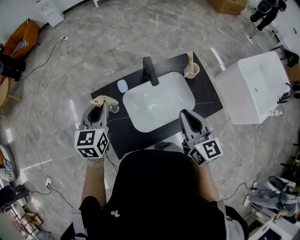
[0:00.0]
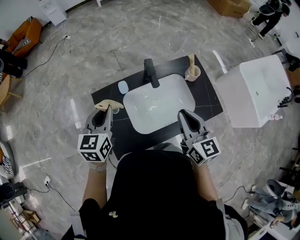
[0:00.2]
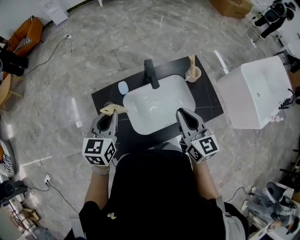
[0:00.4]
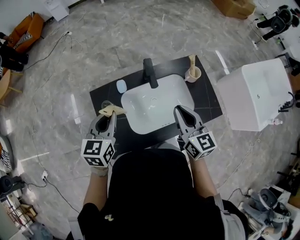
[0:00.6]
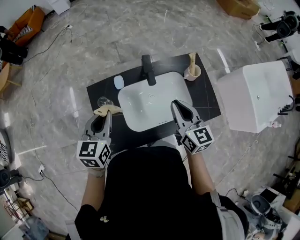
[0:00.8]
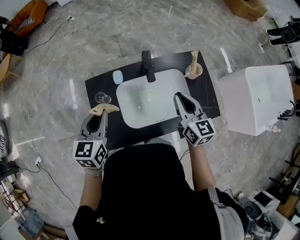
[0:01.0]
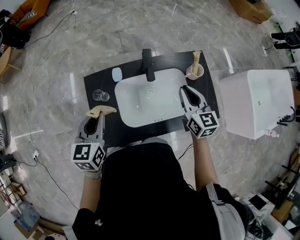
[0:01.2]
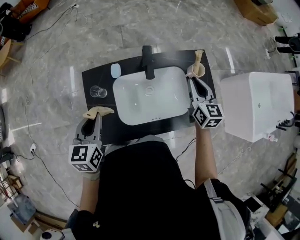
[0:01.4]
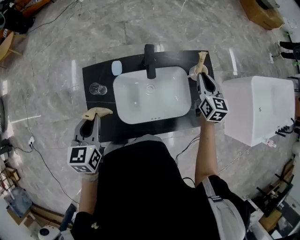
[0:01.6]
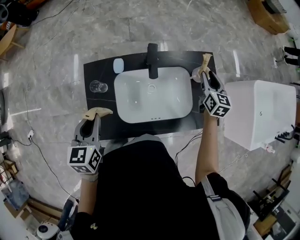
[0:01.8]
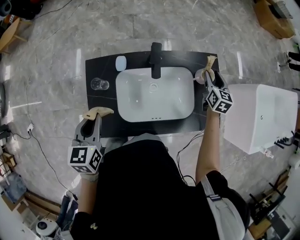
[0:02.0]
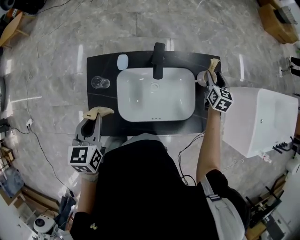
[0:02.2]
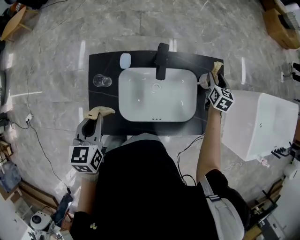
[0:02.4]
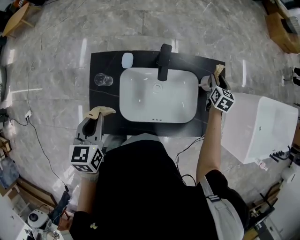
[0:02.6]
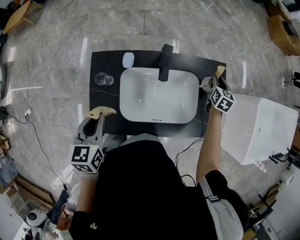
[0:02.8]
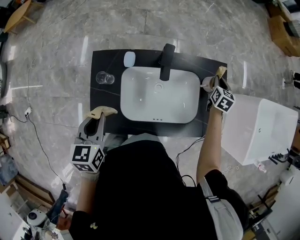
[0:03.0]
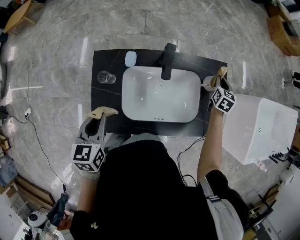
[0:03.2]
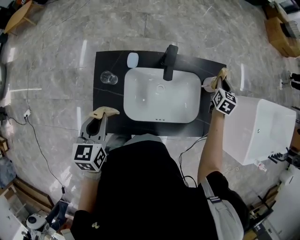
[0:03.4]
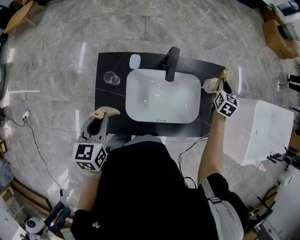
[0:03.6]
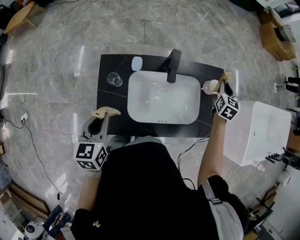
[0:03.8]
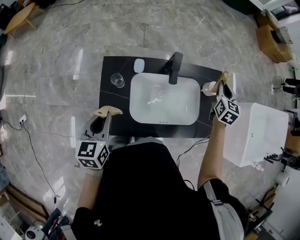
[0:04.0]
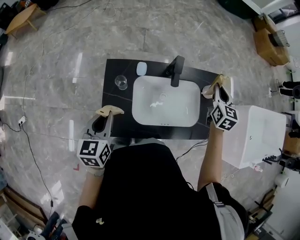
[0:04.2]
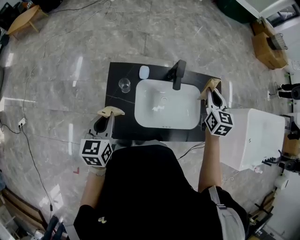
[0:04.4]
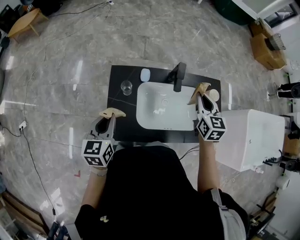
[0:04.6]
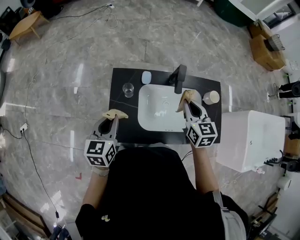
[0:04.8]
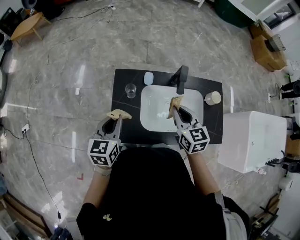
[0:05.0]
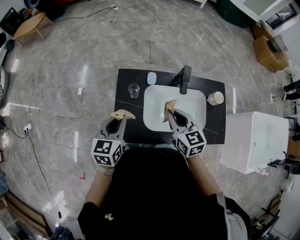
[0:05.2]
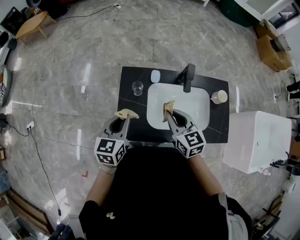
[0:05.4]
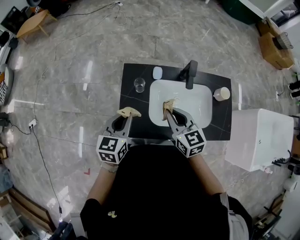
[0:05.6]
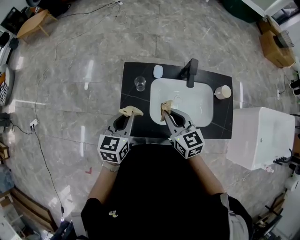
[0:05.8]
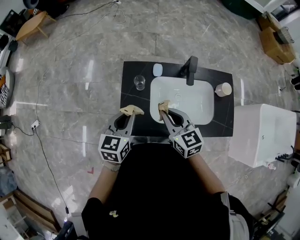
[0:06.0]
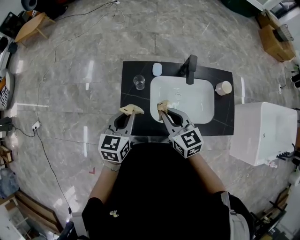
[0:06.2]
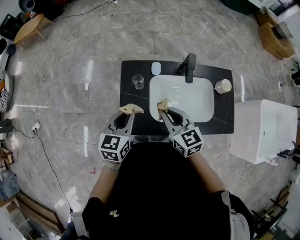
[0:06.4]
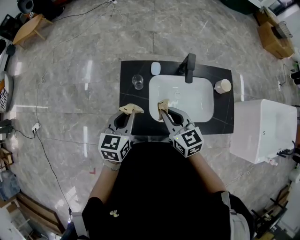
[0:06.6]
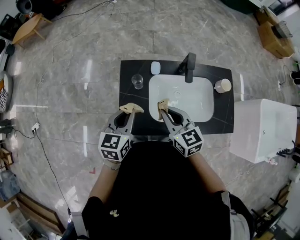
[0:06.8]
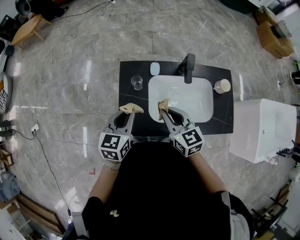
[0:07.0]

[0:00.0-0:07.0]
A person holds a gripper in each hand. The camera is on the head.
0:00.0 to 0:01.4: The left gripper shifts approximately 10 cm backward and downward. Meanwhile the right gripper moves forward, to the right and downward, approximately 25 cm.
0:01.4 to 0:02.8: The right gripper shifts approximately 20 cm downward, forward and to the right, and rotates approximately 20 degrees.
0:02.8 to 0:04.2: The left gripper is displaced to the left by about 5 cm; the right gripper goes approximately 25 cm upward, to the left and backward.
0:04.2 to 0:05.6: The right gripper goes about 35 cm to the left and backward, and changes its angle by approximately 30 degrees.
0:05.6 to 0:07.0: The grippers stay close to where they were, moving slightly.

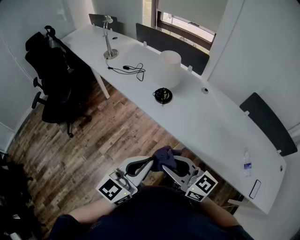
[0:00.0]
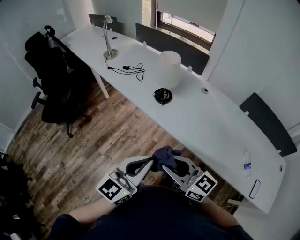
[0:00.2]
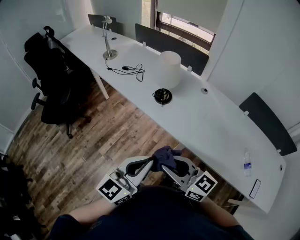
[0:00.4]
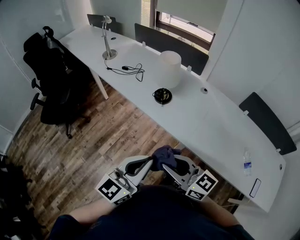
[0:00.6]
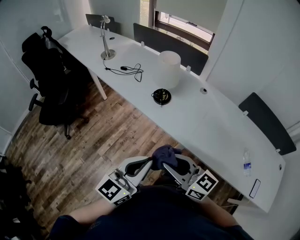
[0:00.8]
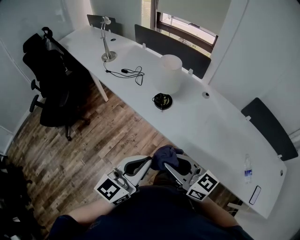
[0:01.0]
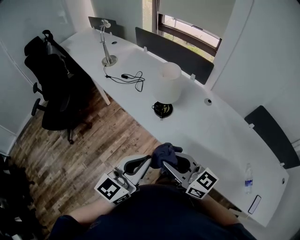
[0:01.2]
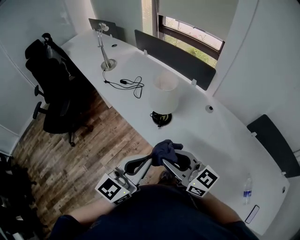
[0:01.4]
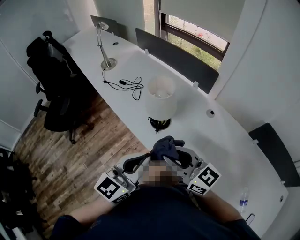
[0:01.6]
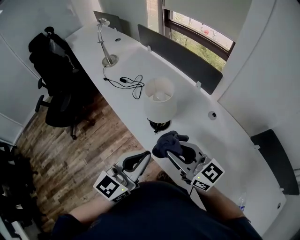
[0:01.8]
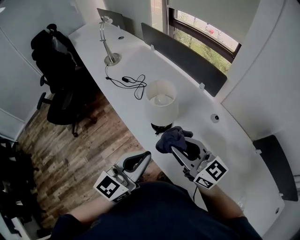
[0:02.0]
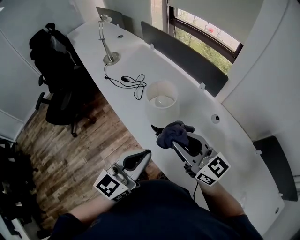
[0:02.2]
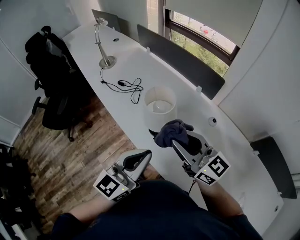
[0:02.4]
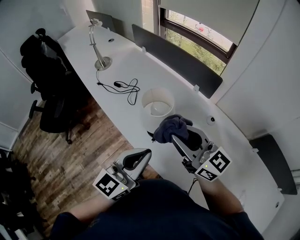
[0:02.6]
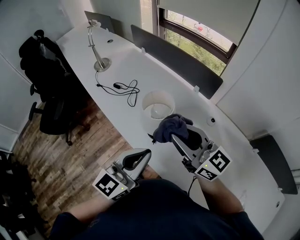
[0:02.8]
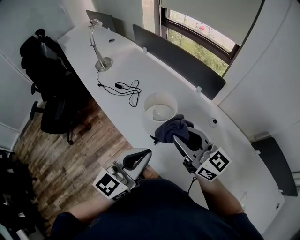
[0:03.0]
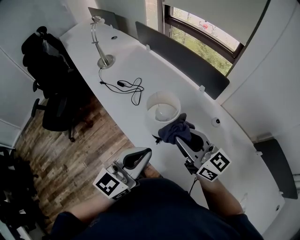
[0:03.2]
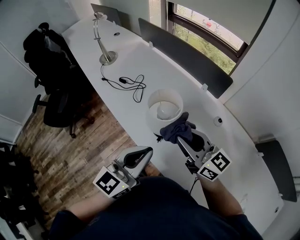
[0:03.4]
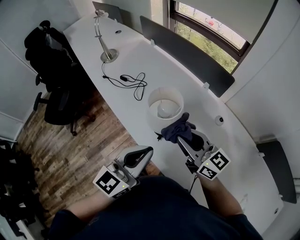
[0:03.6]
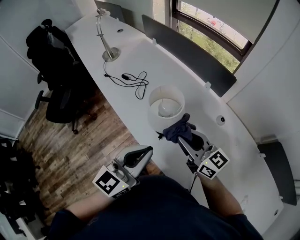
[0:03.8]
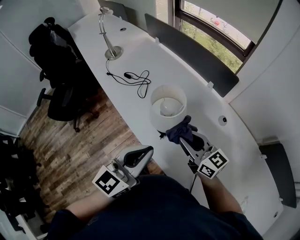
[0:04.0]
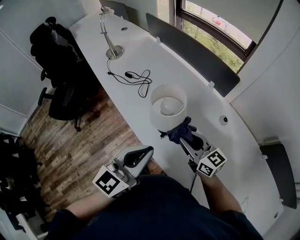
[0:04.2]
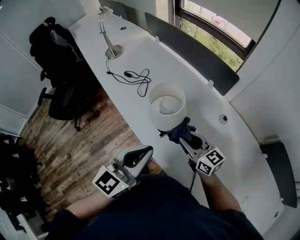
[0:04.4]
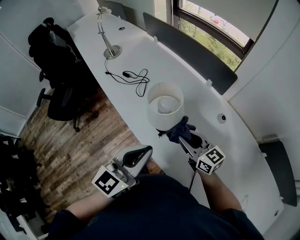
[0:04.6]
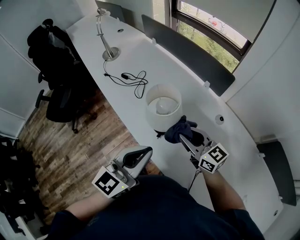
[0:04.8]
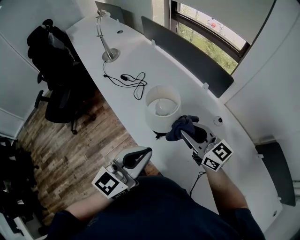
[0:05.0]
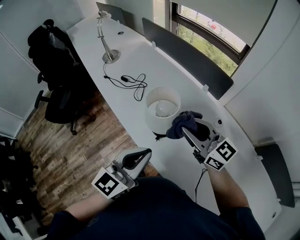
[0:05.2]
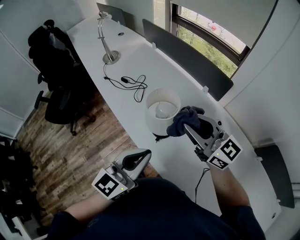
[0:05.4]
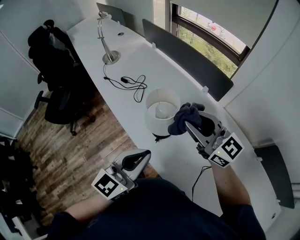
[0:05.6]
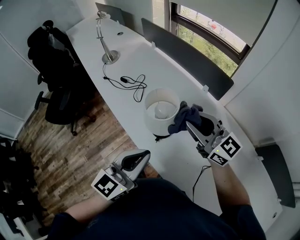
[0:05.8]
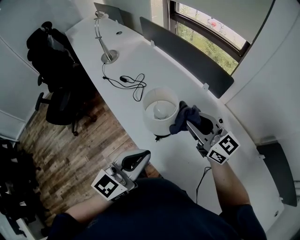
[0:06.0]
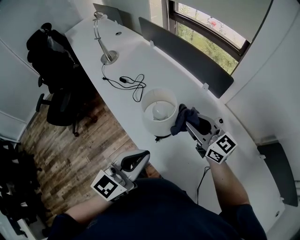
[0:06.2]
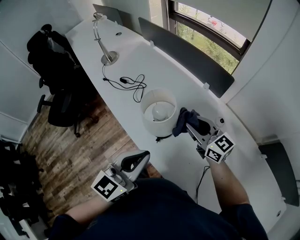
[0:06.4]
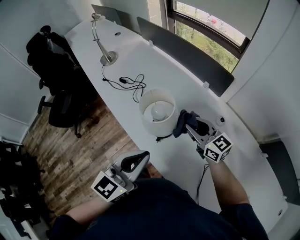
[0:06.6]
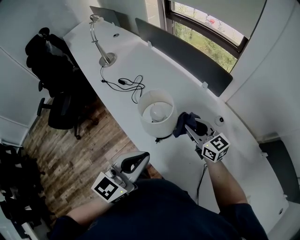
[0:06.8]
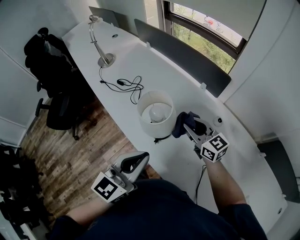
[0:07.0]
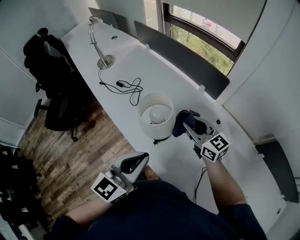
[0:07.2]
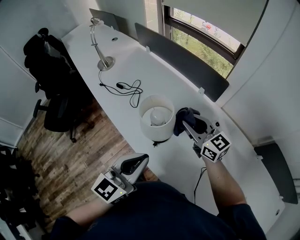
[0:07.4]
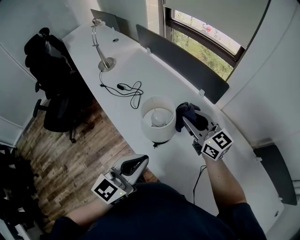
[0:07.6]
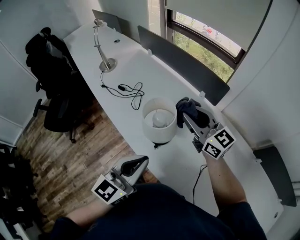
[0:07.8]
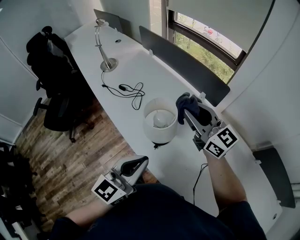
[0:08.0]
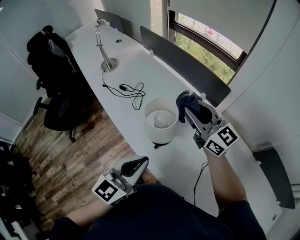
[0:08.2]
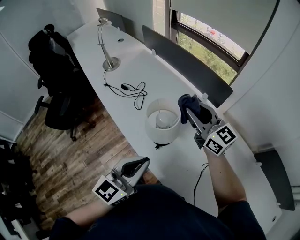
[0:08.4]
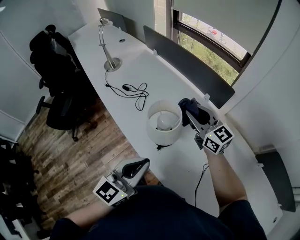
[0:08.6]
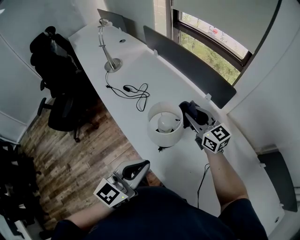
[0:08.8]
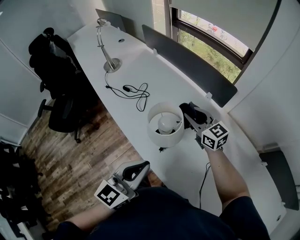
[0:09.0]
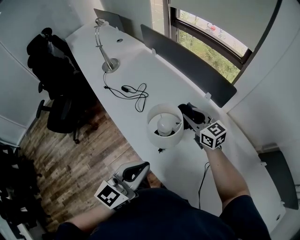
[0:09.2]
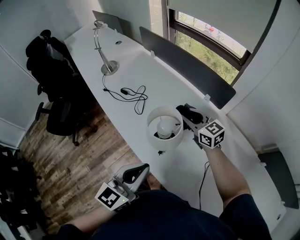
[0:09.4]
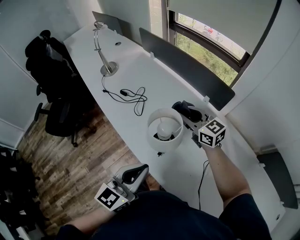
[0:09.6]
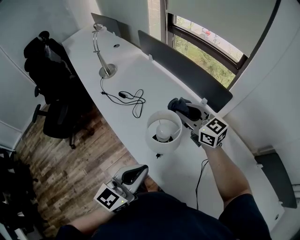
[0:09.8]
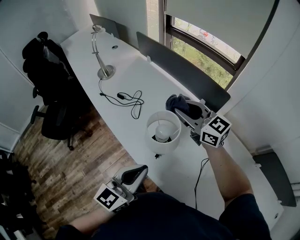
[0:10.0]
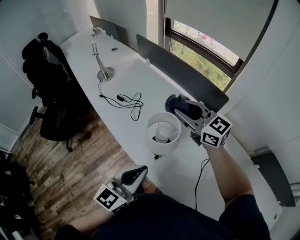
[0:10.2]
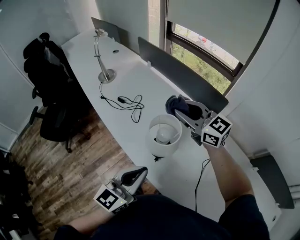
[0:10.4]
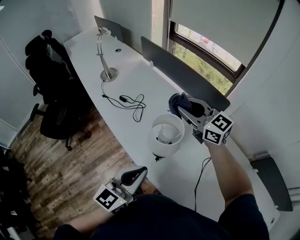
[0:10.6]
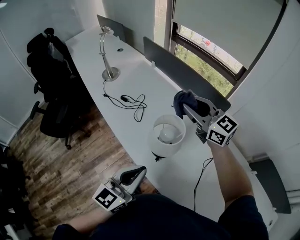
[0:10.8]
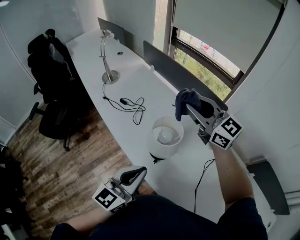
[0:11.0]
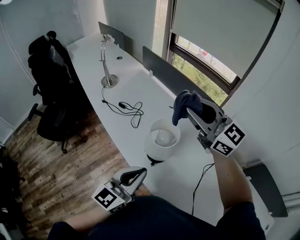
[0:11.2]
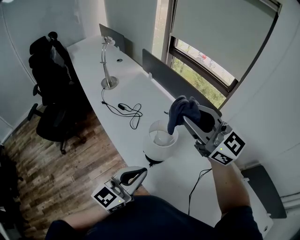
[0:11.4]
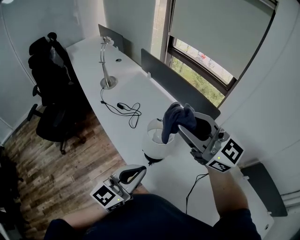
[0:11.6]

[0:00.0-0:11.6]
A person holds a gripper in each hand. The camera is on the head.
0:00.0 to 0:01.4: Both grippers travel together forward, about 20 cm.
0:01.4 to 0:02.8: The grippers both shift forward by about 15 cm.
0:02.8 to 0:04.4: The right gripper moves downward, roughly 15 cm.
0:04.4 to 0:05.8: The right gripper is displaced upward by some 15 cm.
0:05.8 to 0:07.2: The right gripper goes about 10 cm downward.
0:07.2 to 0:08.8: The right gripper travels forward by about 5 cm, and travels upward and back again, about 15 cm each way.
0:08.8 to 0:10.2: The right gripper travels upward by about 10 cm.
0:10.2 to 0:11.6: The right gripper goes roughly 20 cm upward and backward.

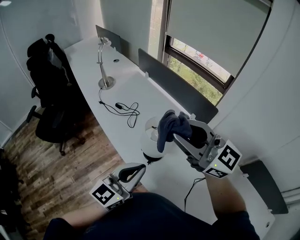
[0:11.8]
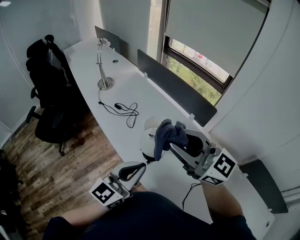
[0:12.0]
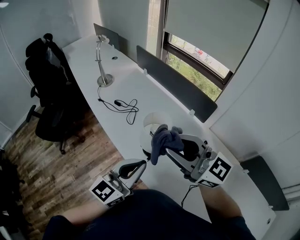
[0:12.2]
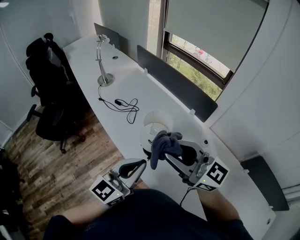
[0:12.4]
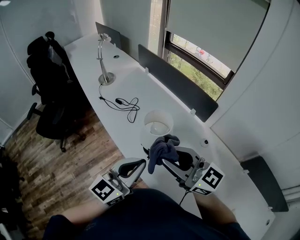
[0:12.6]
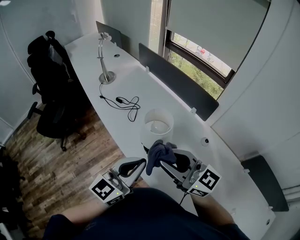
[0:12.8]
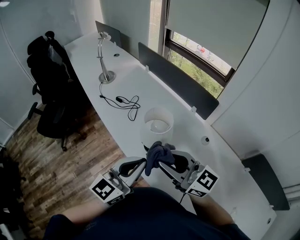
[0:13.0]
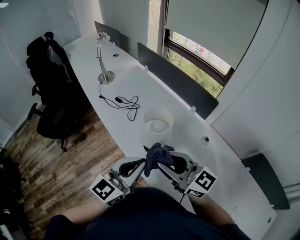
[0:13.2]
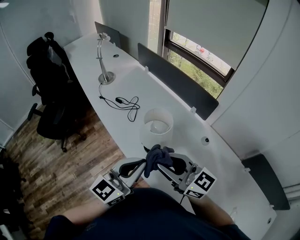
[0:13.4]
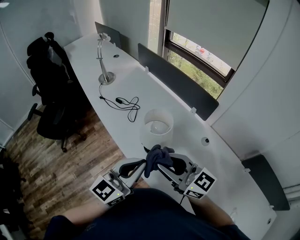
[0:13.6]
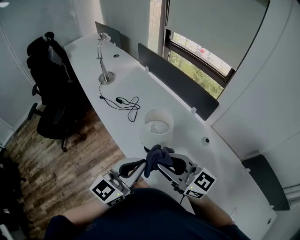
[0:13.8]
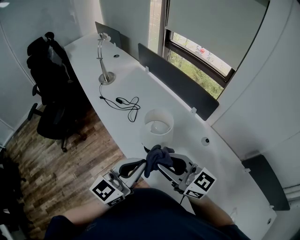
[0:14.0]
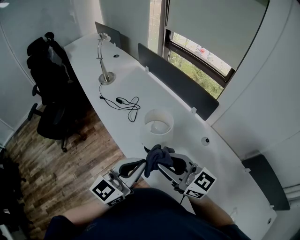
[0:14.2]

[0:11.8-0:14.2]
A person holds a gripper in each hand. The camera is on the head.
0:11.8 to 0:13.0: The right gripper goes approximately 15 cm downward and backward.
0:13.0 to 0:14.2: The grippers make only small movements.

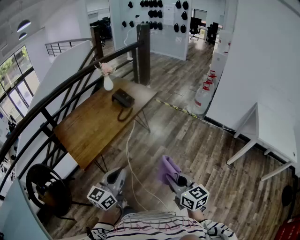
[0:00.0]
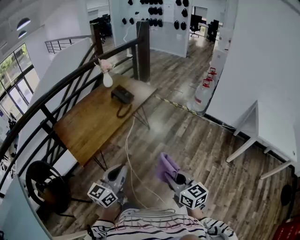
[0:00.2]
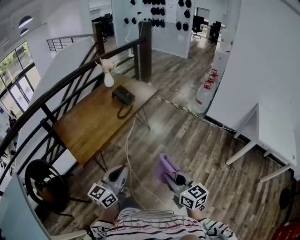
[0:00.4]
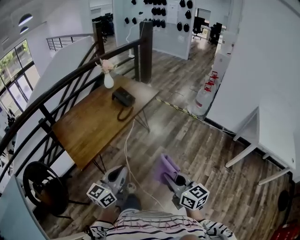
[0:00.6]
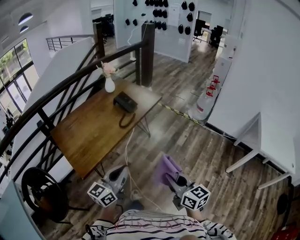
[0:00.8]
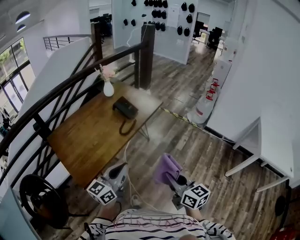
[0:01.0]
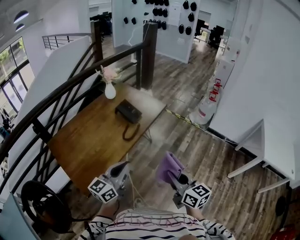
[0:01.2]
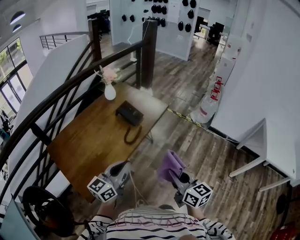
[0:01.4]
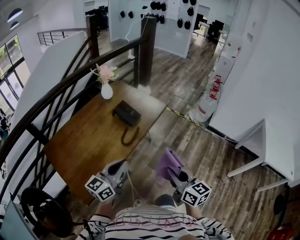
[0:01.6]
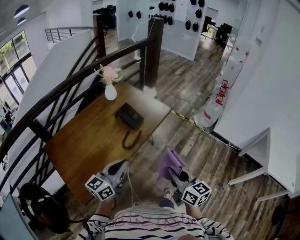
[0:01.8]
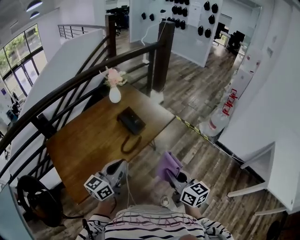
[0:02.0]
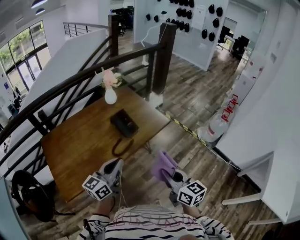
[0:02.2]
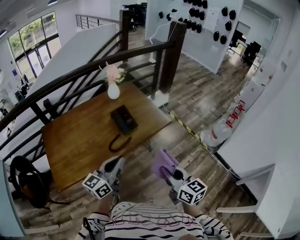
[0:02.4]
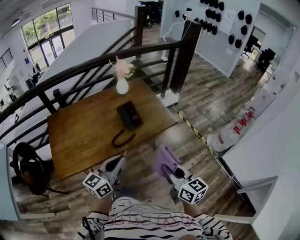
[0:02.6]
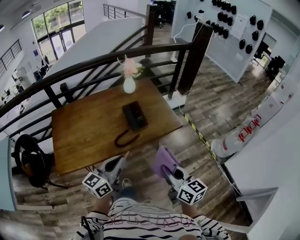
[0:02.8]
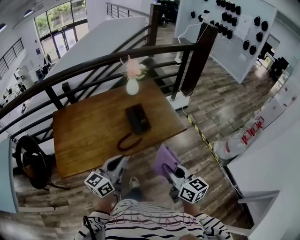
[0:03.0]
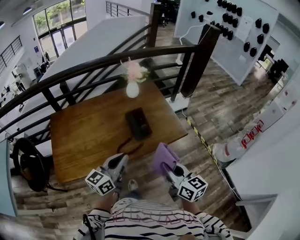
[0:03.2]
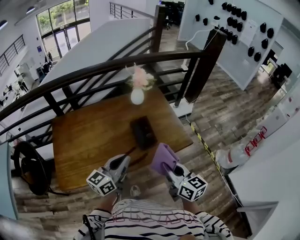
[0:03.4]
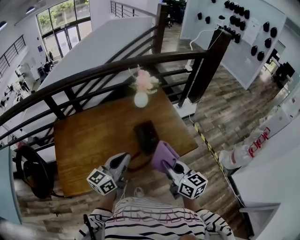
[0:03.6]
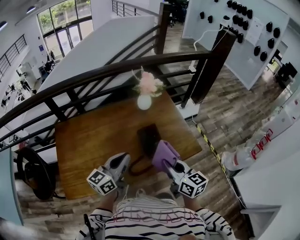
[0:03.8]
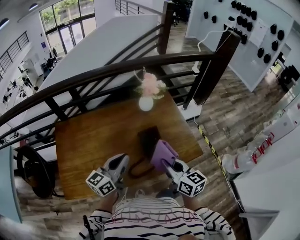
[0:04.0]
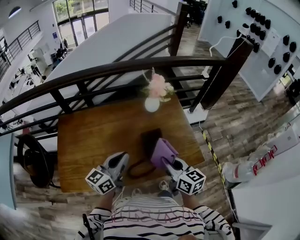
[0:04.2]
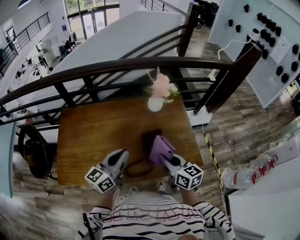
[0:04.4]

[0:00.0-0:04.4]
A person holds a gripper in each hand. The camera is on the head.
0:00.0 to 0:01.4: Both grippers travel together forward, roughly 35 cm.
0:01.4 to 0:03.0: The left gripper changes place by some 25 cm, and changes its angle by approximately 30 degrees. The right gripper moves approximately 35 cm, and changes its angle by roughly 30 degrees.
0:03.0 to 0:04.4: Both grippers move forward, some 30 cm.
